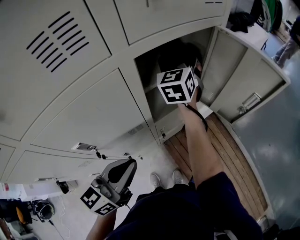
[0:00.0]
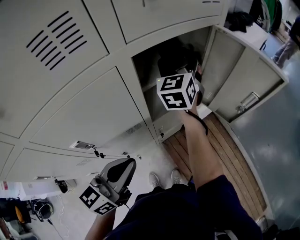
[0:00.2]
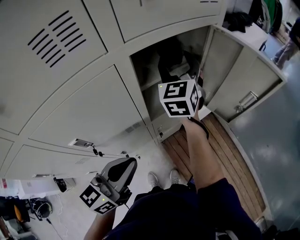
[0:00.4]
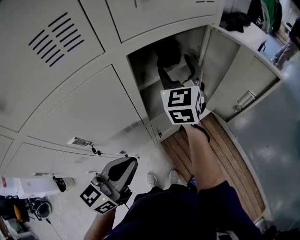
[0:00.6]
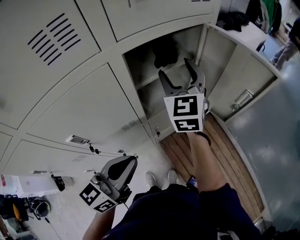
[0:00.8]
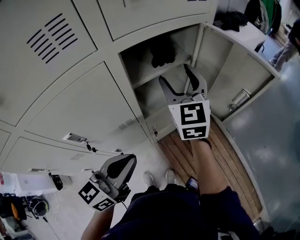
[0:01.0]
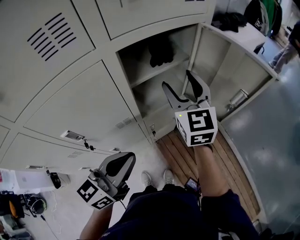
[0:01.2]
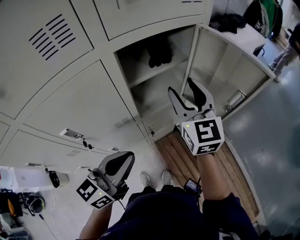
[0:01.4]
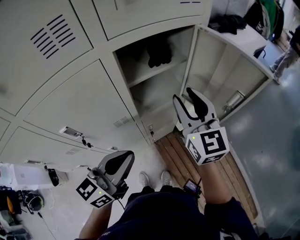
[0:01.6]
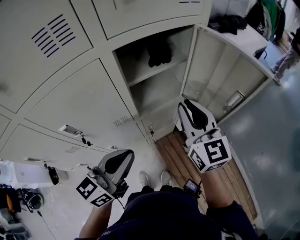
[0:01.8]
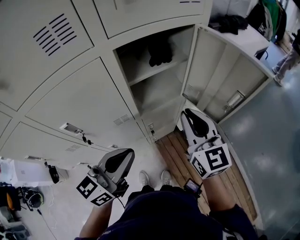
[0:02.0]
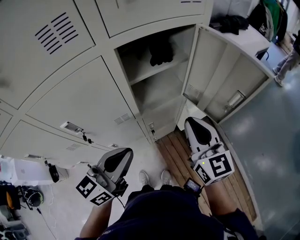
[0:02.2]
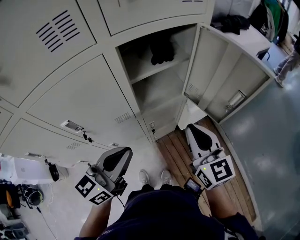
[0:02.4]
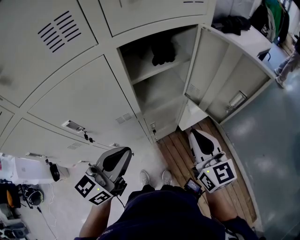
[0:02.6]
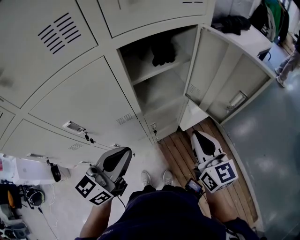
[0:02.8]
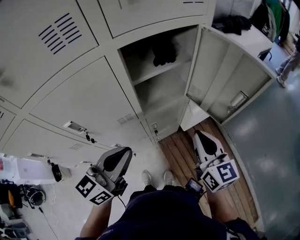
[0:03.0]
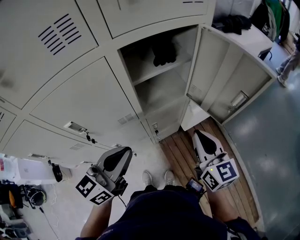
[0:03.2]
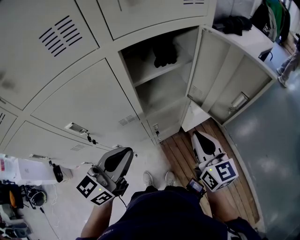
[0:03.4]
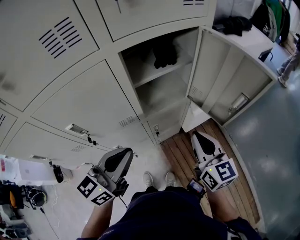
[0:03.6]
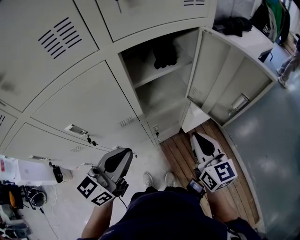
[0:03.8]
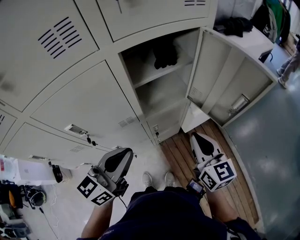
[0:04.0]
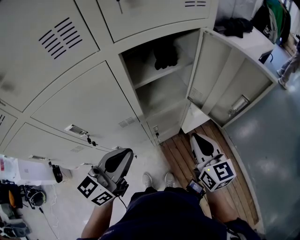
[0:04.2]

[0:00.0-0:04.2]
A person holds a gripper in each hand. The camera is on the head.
0:00.0 to 0:01.4: The right gripper shifts about 20 cm backward and to the right, and swivels some 30 degrees. Meanwhile the left gripper heads to the right, covering approximately 5 cm.
0:01.4 to 0:02.8: The right gripper travels backward, downward and to the right by approximately 15 cm, turns by approximately 20 degrees, and closes its fingers.
0:02.8 to 0:04.2: The grippers stay close to where they were, moving slightly.

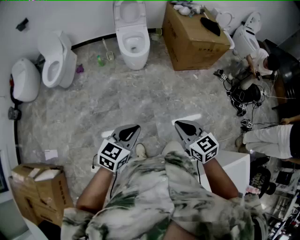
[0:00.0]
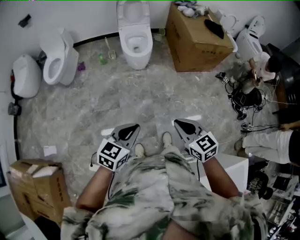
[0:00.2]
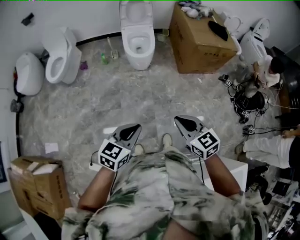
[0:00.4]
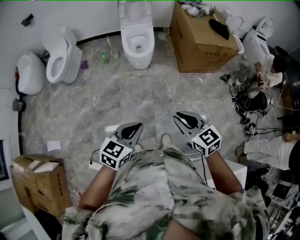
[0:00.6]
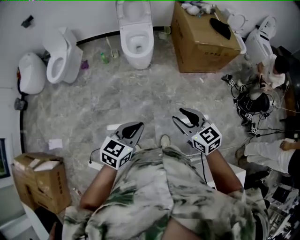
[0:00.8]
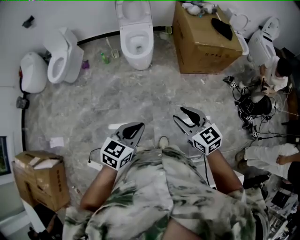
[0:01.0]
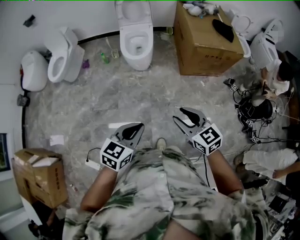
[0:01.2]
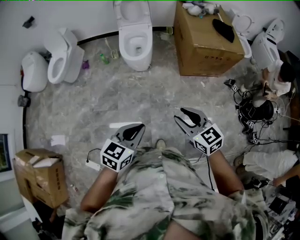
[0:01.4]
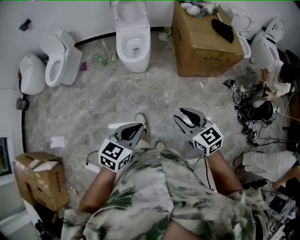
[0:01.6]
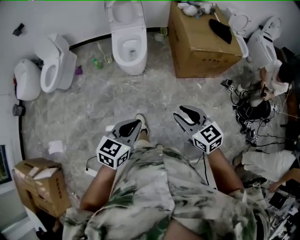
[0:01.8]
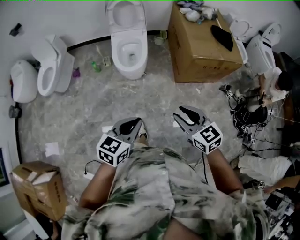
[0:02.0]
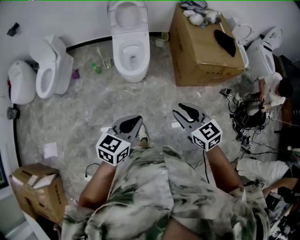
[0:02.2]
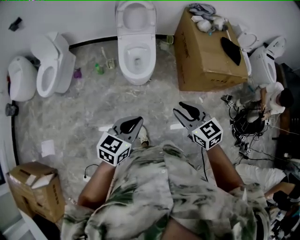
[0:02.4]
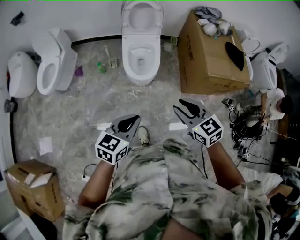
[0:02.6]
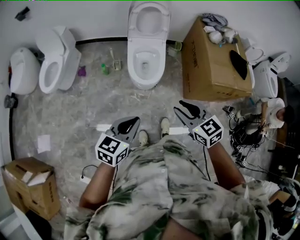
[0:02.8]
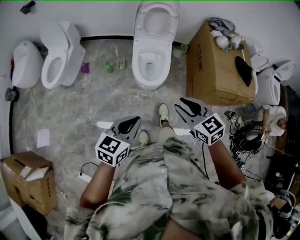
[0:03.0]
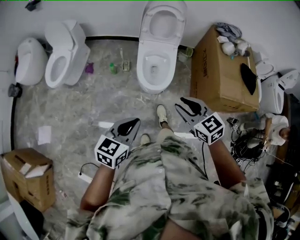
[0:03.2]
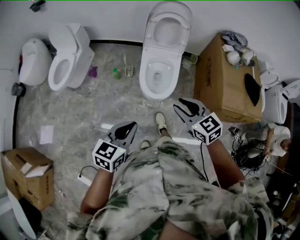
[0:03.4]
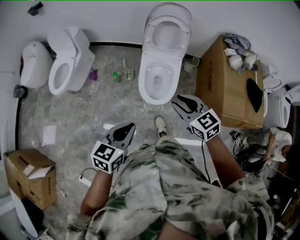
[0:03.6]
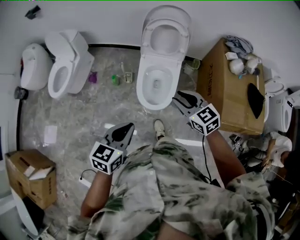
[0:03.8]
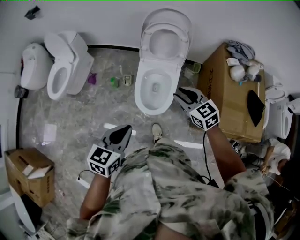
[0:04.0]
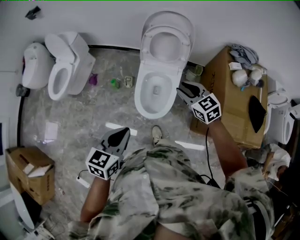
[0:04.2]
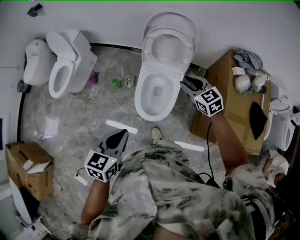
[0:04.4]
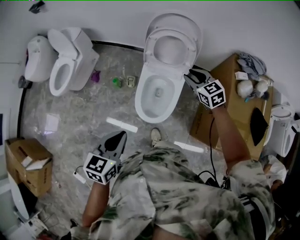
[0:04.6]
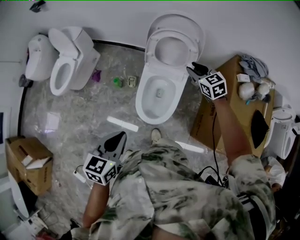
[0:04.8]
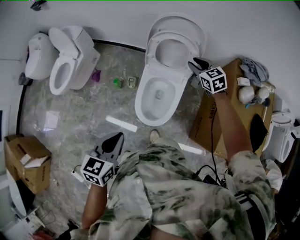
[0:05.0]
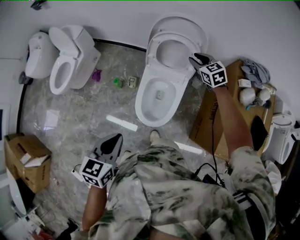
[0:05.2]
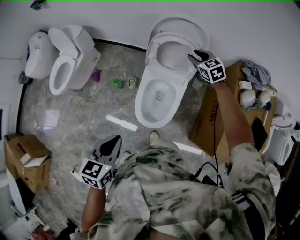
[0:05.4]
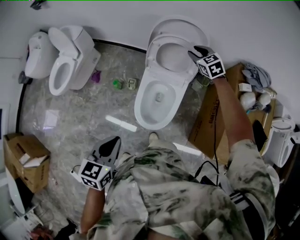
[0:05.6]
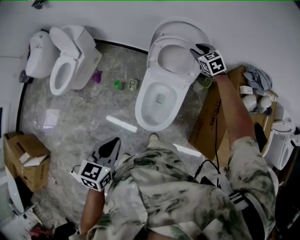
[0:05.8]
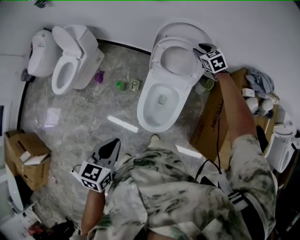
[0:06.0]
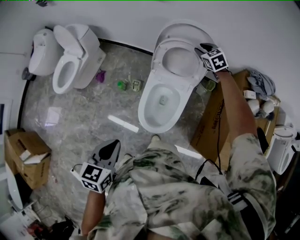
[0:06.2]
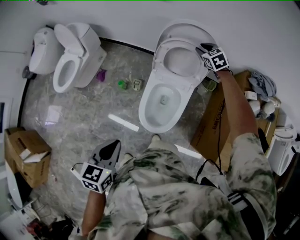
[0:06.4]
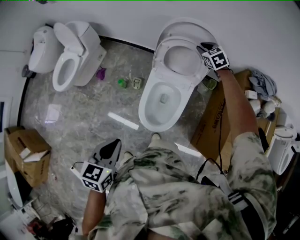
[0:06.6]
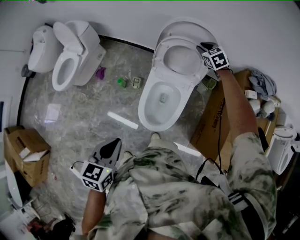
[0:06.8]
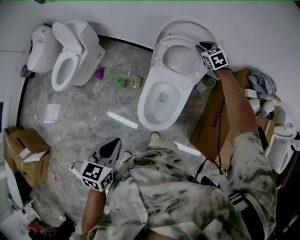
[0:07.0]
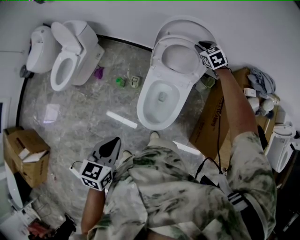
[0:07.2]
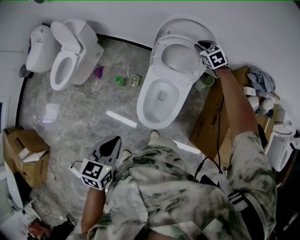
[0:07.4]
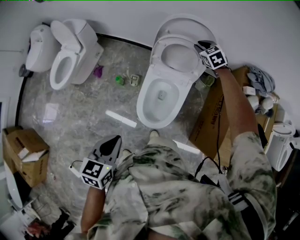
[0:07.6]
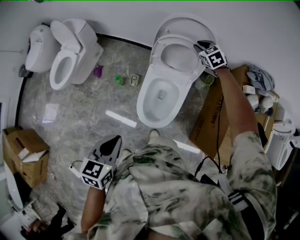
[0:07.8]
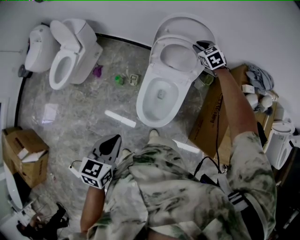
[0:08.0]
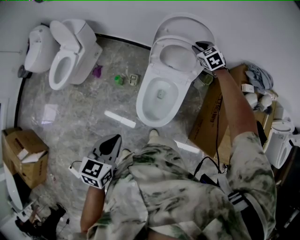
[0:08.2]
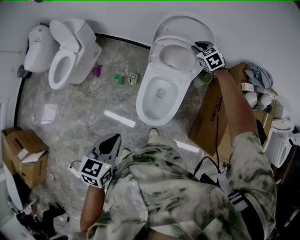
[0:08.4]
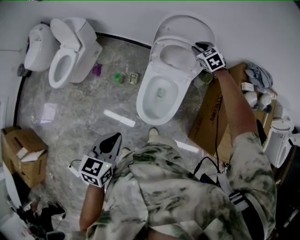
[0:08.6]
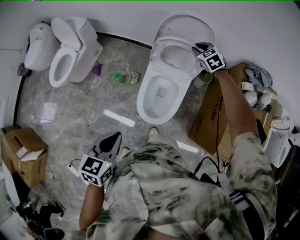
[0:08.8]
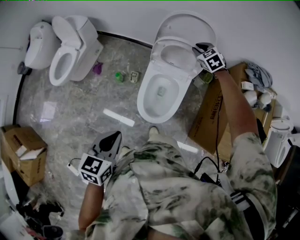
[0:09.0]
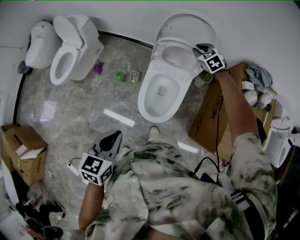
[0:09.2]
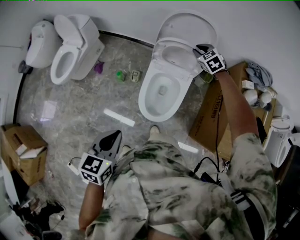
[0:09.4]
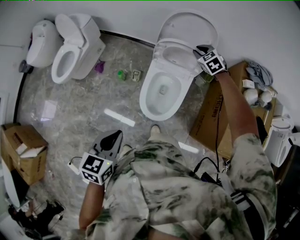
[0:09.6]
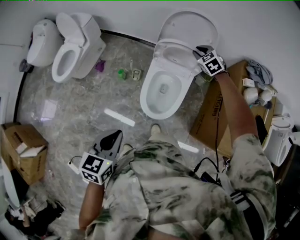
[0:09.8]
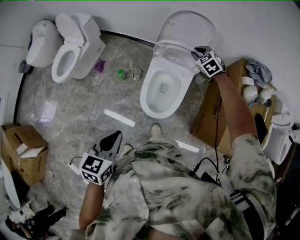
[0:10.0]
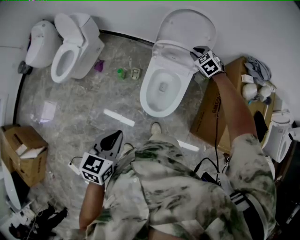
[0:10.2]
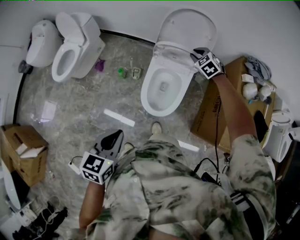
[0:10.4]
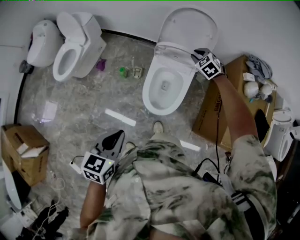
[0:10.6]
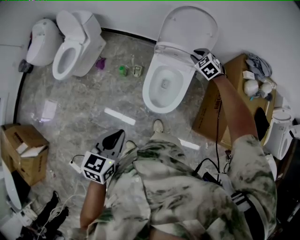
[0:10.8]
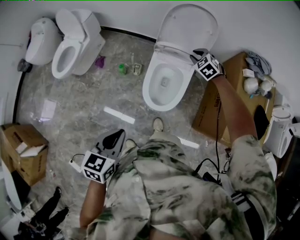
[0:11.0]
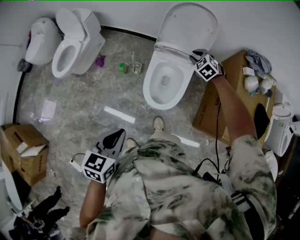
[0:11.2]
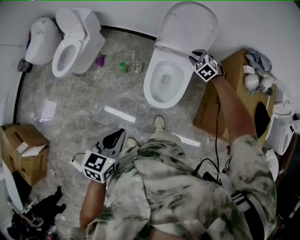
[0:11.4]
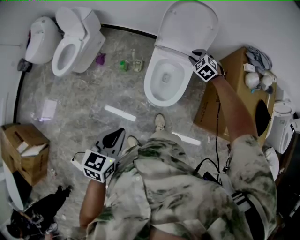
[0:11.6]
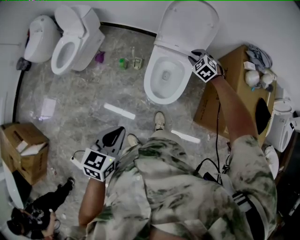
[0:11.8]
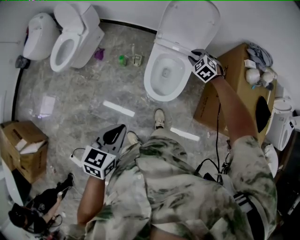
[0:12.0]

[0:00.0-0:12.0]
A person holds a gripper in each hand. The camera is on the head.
0:00.0 to 0:01.6: The left gripper heads to the right and forward, covering about 30 cm, while the right gripper shifts approximately 30 cm forward and to the right, and opens its fingers.
0:01.6 to 0:03.0: Both grippers travel together forward and to the left, some 40 cm.
0:03.0 to 0:04.4: The right gripper goes roughly 50 cm forward, while the left gripper moves forward, approximately 30 cm, and turns by about 20 degrees.
0:04.4 to 0:06.0: The left gripper is displaced forward by approximately 5 cm; the right gripper goes approximately 30 cm forward.
0:06.0 to 0:07.6: There are only small adjustments of the grippers.
0:07.6 to 0:09.0: The right gripper is displaced backward by about 5 cm.
0:09.0 to 0:10.4: Both grippers travel together backward, some 10 cm.
0:10.4 to 0:12.0: The right gripper shifts about 10 cm backward; the left gripper is displaced backward by some 5 cm.

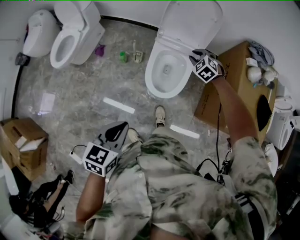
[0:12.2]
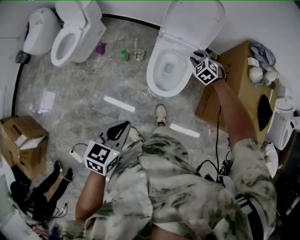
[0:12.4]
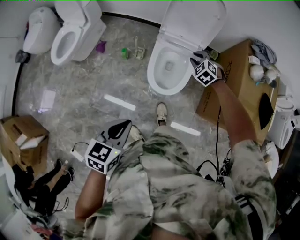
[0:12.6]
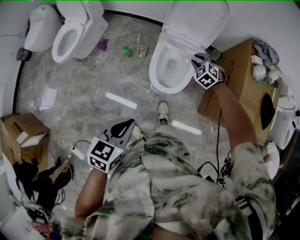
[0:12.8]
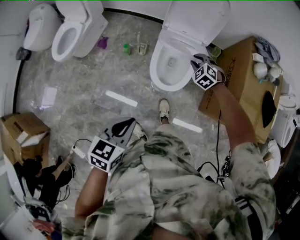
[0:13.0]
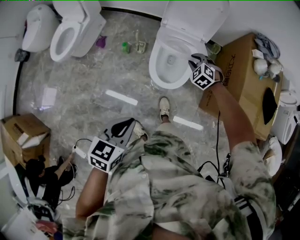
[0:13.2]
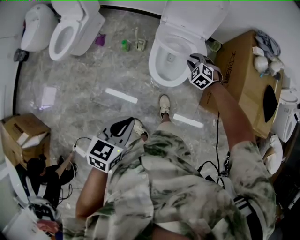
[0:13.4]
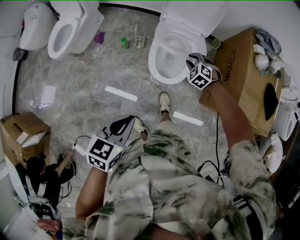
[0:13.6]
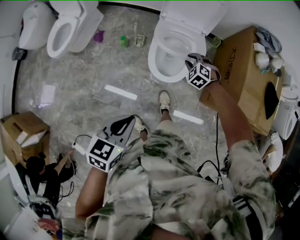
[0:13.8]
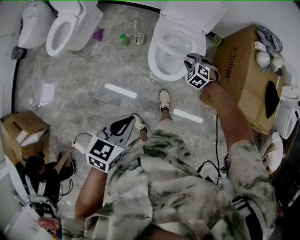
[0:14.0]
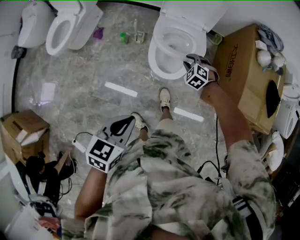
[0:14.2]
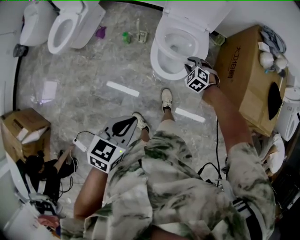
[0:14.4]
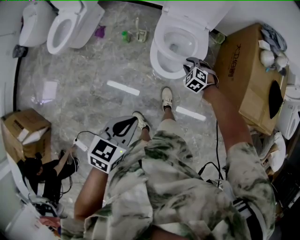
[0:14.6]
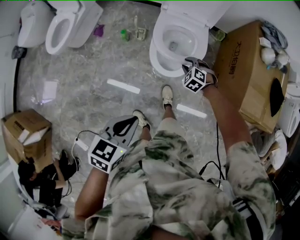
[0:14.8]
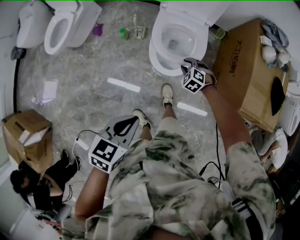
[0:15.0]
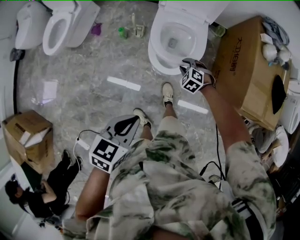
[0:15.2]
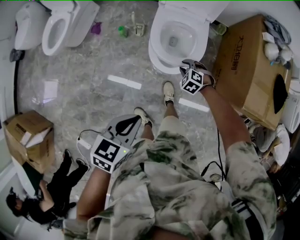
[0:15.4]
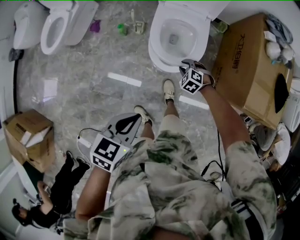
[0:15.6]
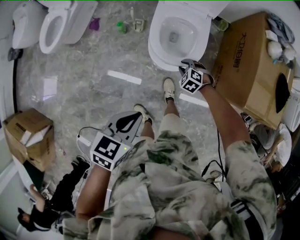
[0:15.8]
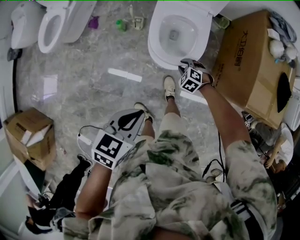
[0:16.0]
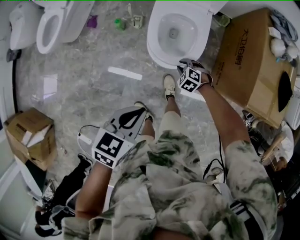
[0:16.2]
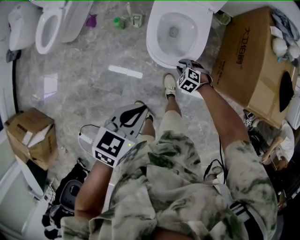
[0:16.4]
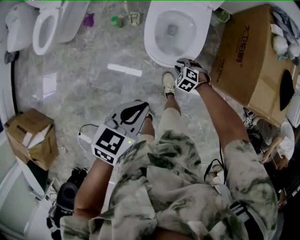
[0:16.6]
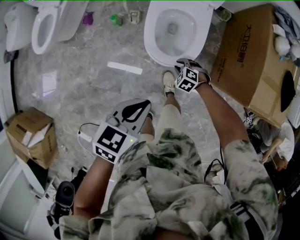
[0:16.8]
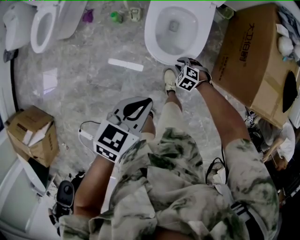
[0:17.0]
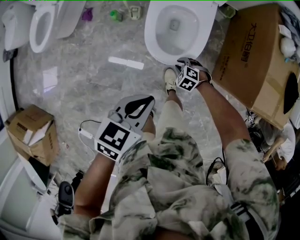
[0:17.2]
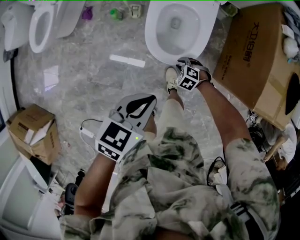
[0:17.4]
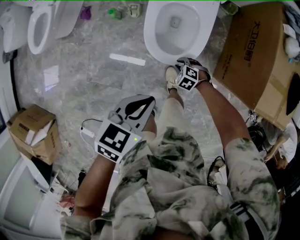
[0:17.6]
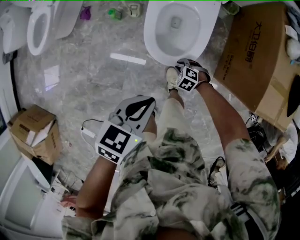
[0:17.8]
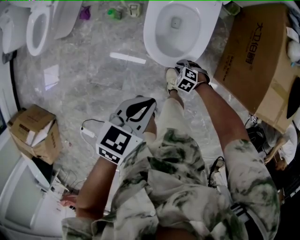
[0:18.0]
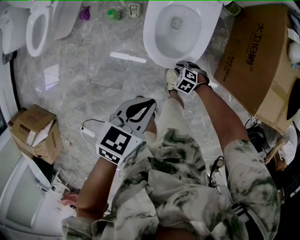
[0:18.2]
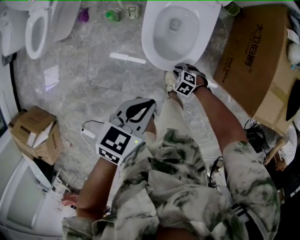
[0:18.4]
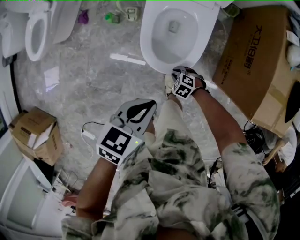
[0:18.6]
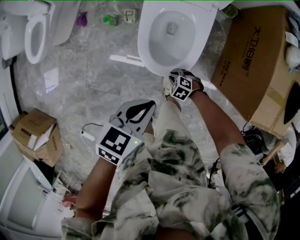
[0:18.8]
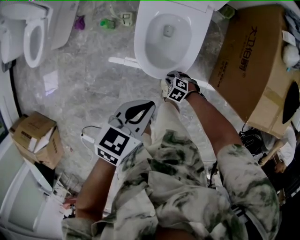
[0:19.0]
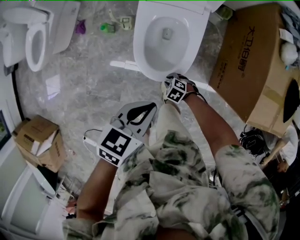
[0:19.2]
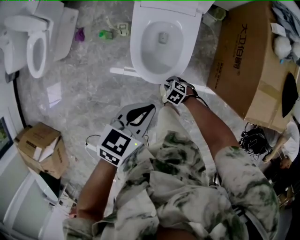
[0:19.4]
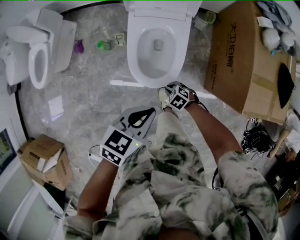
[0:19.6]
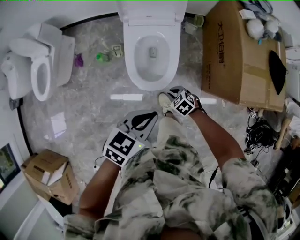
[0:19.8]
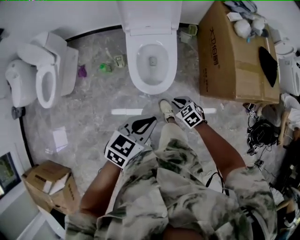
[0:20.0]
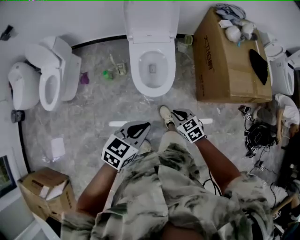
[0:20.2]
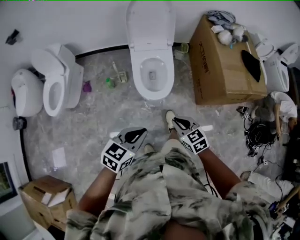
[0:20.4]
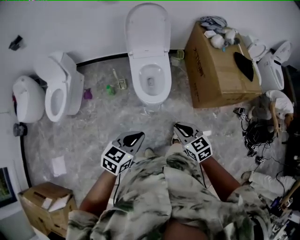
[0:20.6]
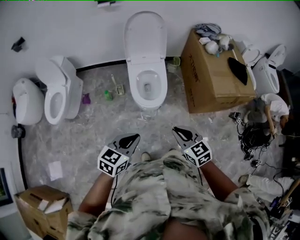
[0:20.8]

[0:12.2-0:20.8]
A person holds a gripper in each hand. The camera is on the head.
0:12.2 to 0:13.6: The right gripper goes about 15 cm backward and downward.
0:13.6 to 0:15.0: The right gripper heads downward and backward, covering about 10 cm.
0:15.0 to 0:16.6: The right gripper heads downward, covering approximately 10 cm. The left gripper travels forward and downward by roughly 10 cm.
0:16.6 to 0:18.0: The right gripper goes about 10 cm downward. Meanwhile the left gripper shifts by some 10 cm.
0:18.0 to 0:19.4: The left gripper shifts by about 10 cm.
0:19.4 to 0:20.8: The right gripper is displaced upward by approximately 50 cm, and tips its fingers upward by about 40 degrees; the left gripper shifts by approximately 40 cm, and changes its angle by roughly 20 degrees.
